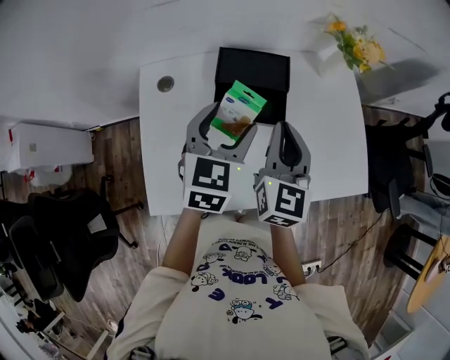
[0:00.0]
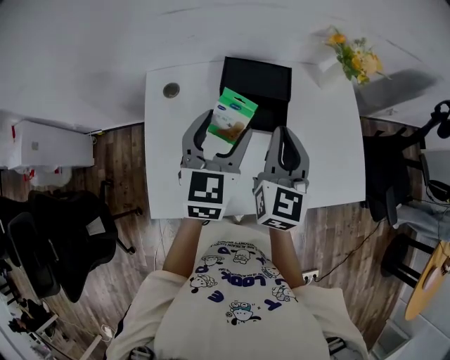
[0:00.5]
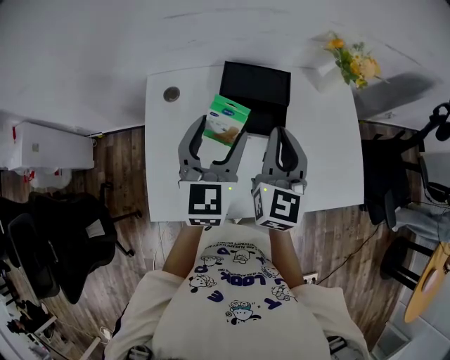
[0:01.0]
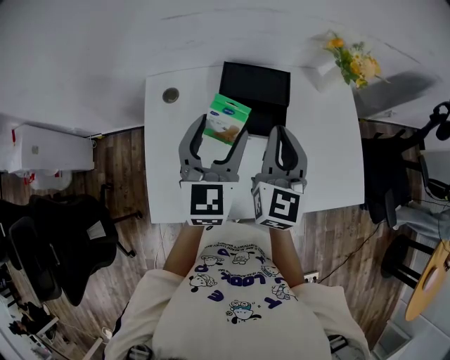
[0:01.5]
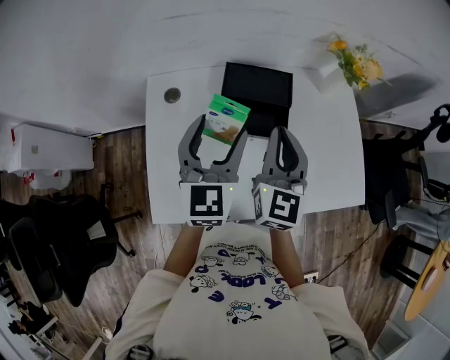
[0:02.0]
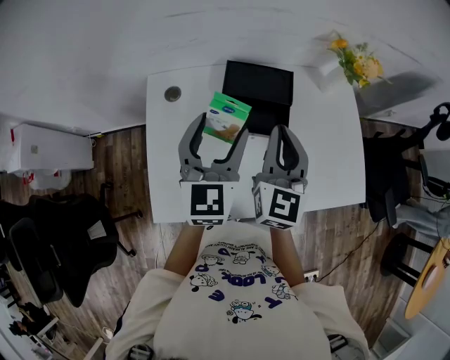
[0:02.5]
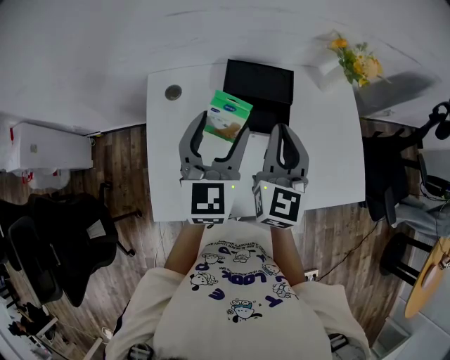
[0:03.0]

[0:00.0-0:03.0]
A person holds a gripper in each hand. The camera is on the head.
0:00.0 to 0:01.5: The left gripper changes place by about 5 cm.
0:01.5 to 0:03.0: The grippers stay close to where they were, moving slightly.

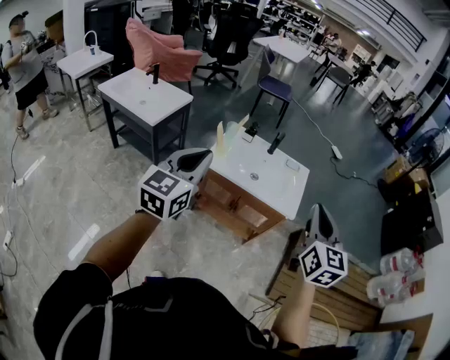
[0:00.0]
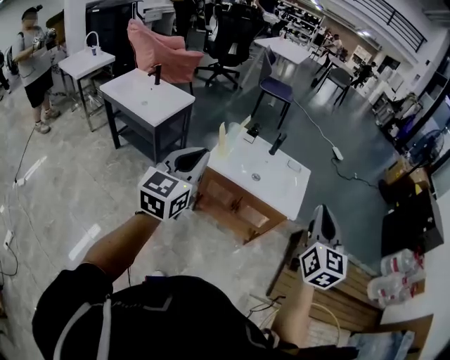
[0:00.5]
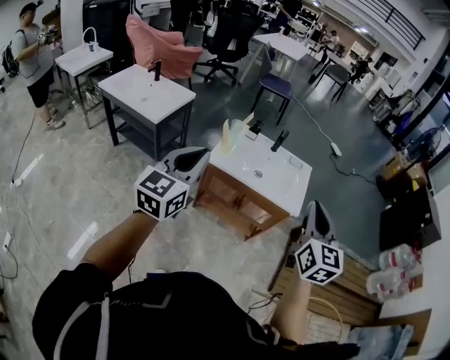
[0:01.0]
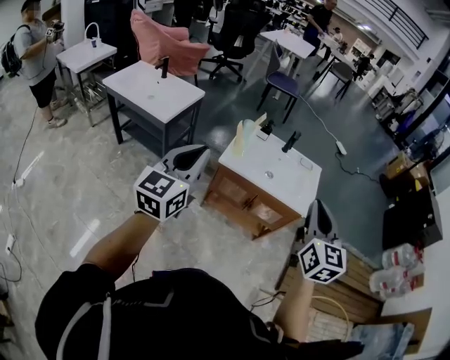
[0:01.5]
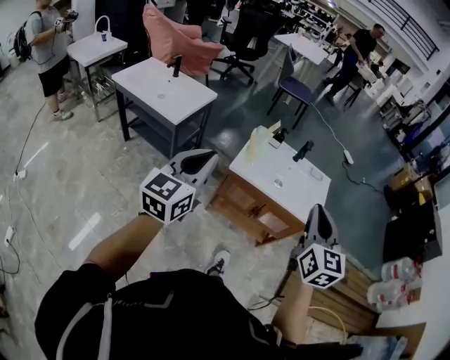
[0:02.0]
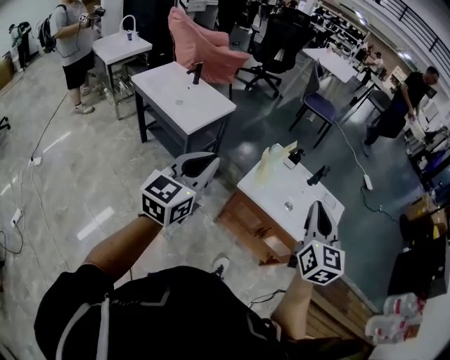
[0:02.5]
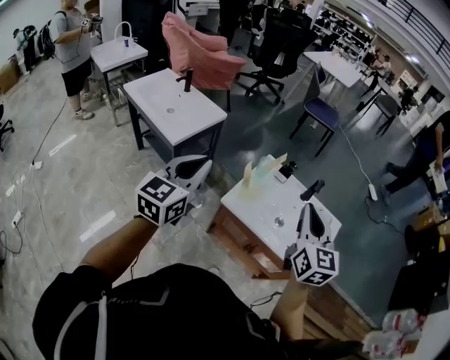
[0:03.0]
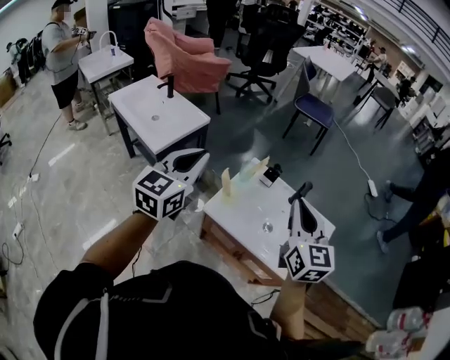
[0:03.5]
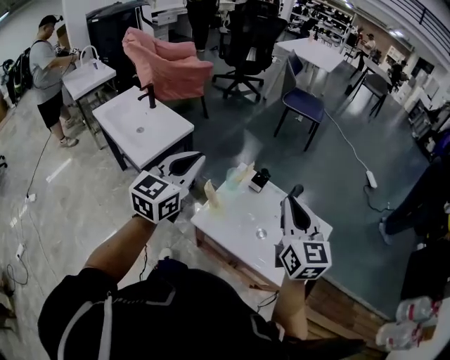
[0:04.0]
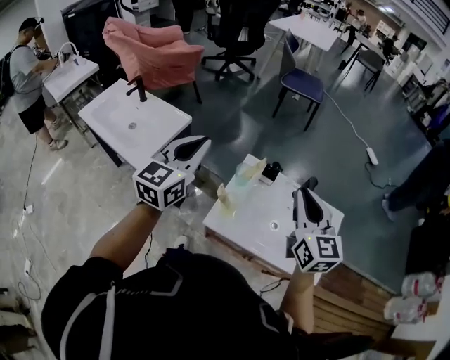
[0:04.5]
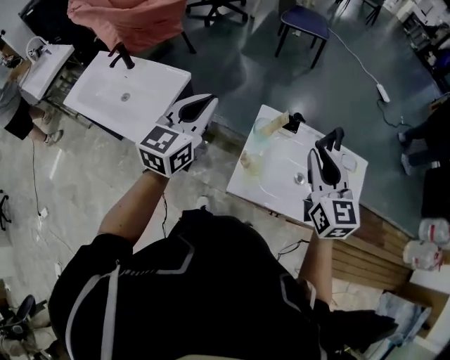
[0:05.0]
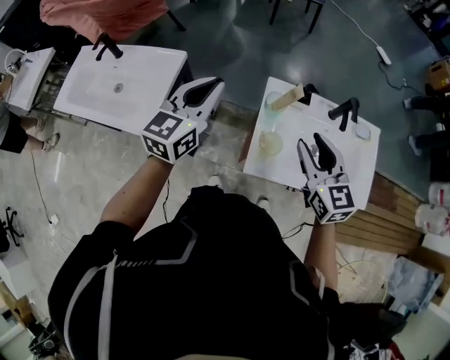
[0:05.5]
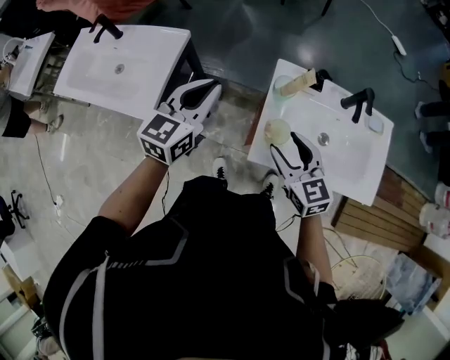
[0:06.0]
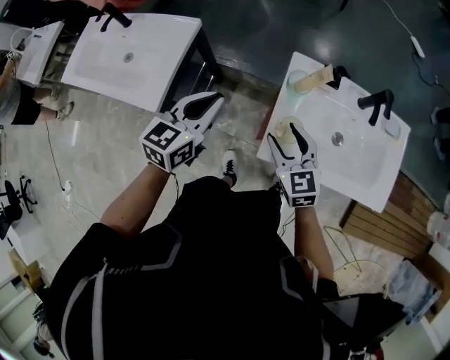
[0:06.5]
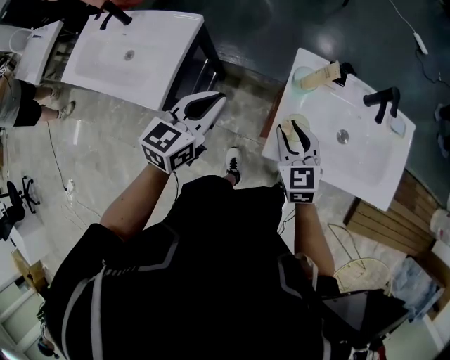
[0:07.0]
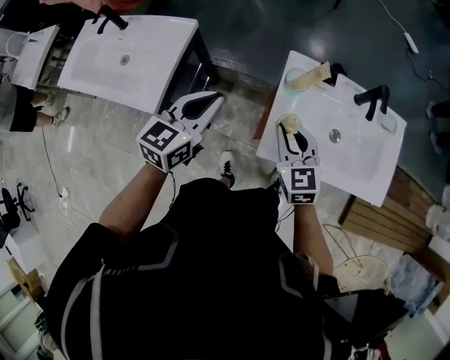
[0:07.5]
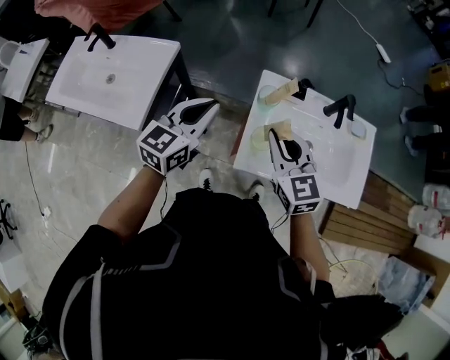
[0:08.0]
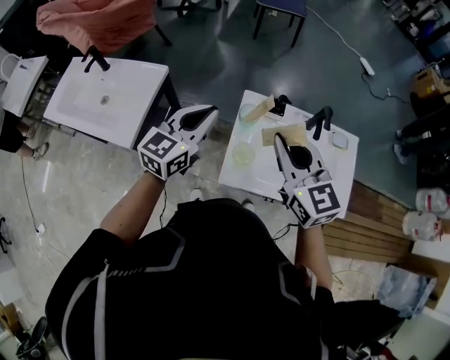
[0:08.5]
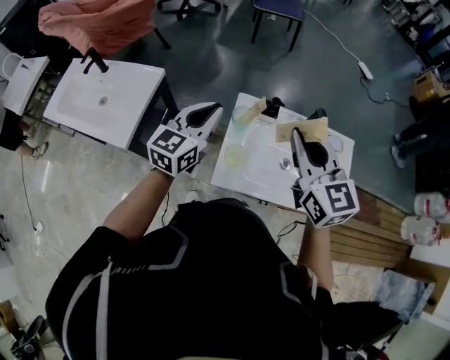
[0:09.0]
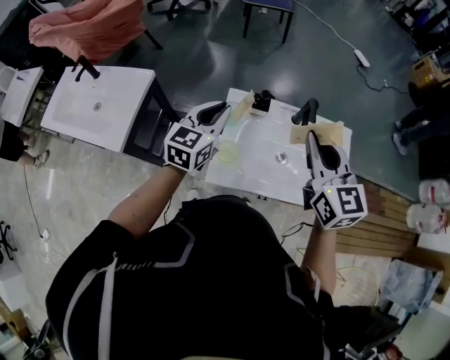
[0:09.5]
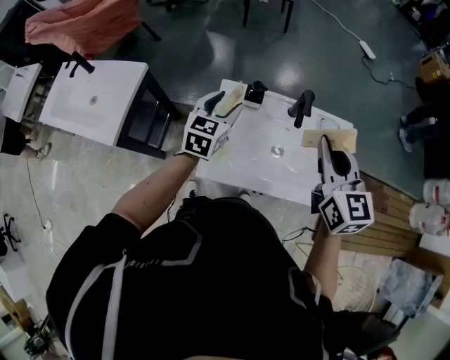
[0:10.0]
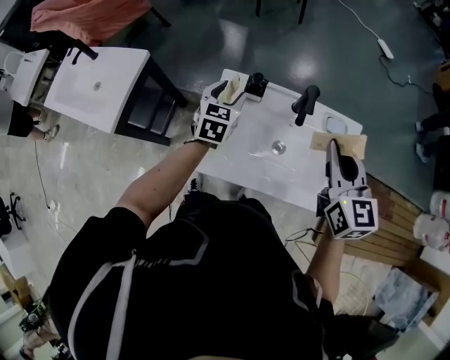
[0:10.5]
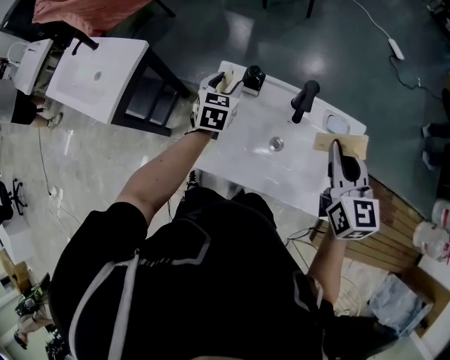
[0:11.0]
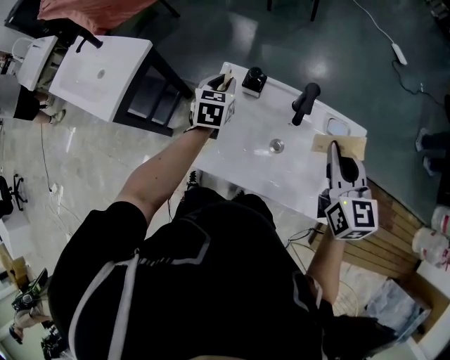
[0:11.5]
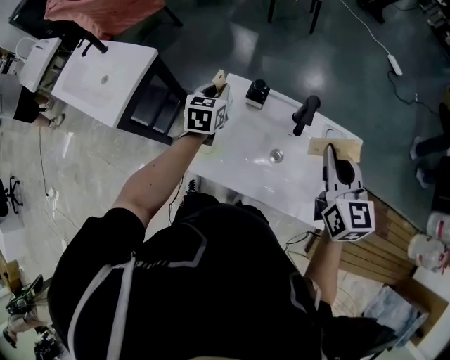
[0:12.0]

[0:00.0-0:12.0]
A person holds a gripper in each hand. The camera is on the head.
0:00.0 to 0:02.0: Both grippers travel together to the left, roughly 15 cm.
0:02.0 to 0:04.0: The left gripper goes approximately 35 cm forward and to the right. The right gripper is displaced forward by approximately 35 cm, and turns by roughly 20 degrees.
0:04.0 to 0:06.0: The left gripper goes approximately 25 cm downward, forward and to the left, and swivels approximately 20 degrees. Meanwhile the right gripper shifts some 30 cm downward and to the left, and opens its fingers.
0:06.0 to 0:08.0: The right gripper heads upward, covering roughly 5 cm, and closes its fingers.
0:08.0 to 0:10.0: The left gripper goes approximately 20 cm to the right and forward, and opens its fingers, while the right gripper moves to the right and upward, about 30 cm.
0:10.0 to 0:12.0: The left gripper heads forward and downward, covering about 10 cm, changes its angle by roughly 20 degrees, and closes, while the right gripper heads to the right, covering some 5 cm.

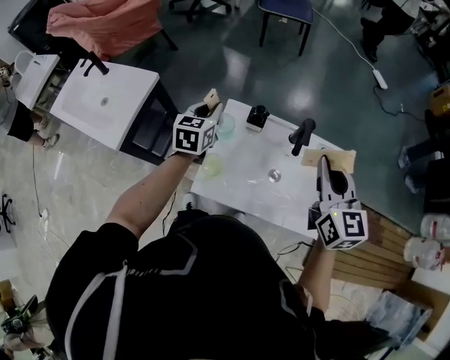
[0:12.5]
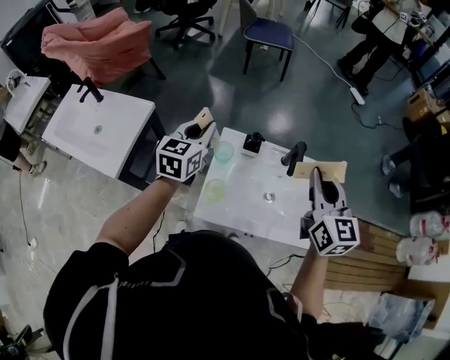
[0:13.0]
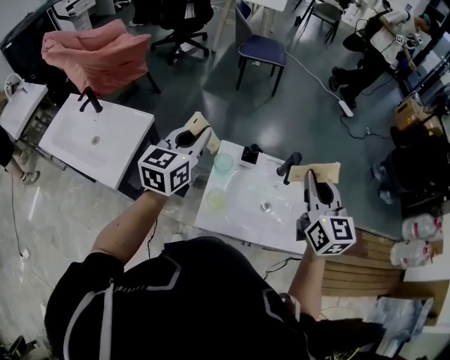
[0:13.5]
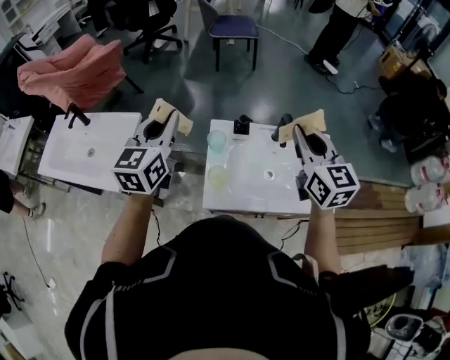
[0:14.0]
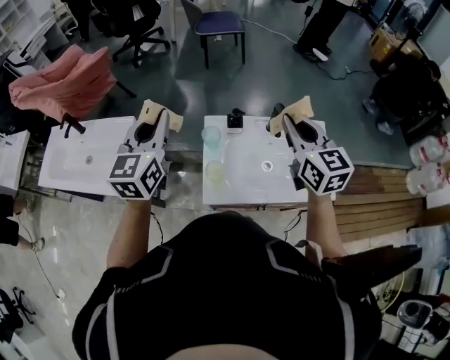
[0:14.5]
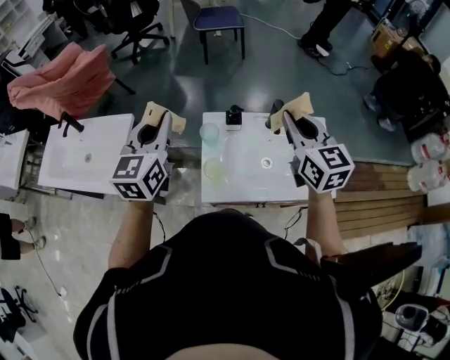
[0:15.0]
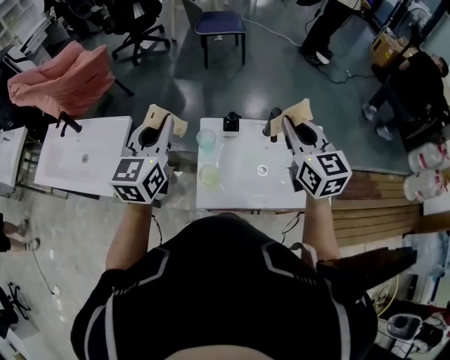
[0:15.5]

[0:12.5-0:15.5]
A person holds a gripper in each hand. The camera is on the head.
0:12.5 to 0:14.0: The left gripper is displaced upward and backward by roughly 20 cm, and turns by some 20 degrees, while the right gripper goes roughly 10 cm to the left and upward.
0:14.0 to 0:15.5: The grippers stay close to where they were, moving slightly.

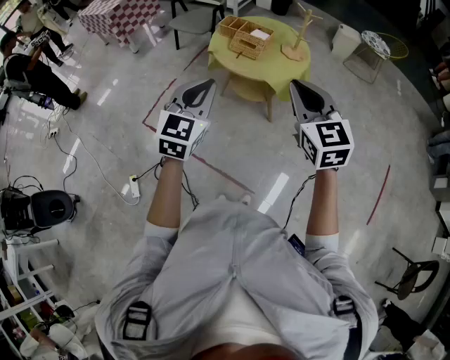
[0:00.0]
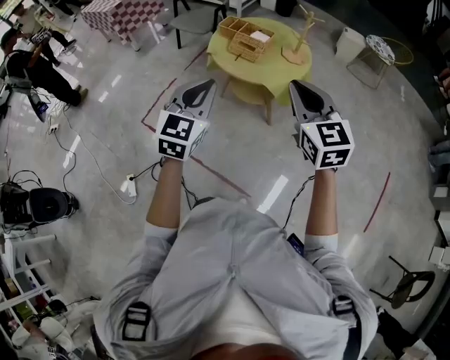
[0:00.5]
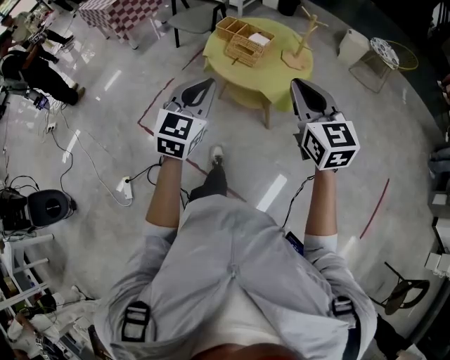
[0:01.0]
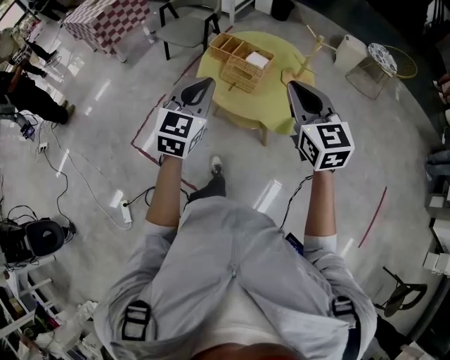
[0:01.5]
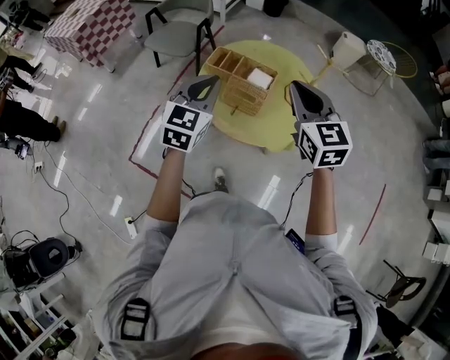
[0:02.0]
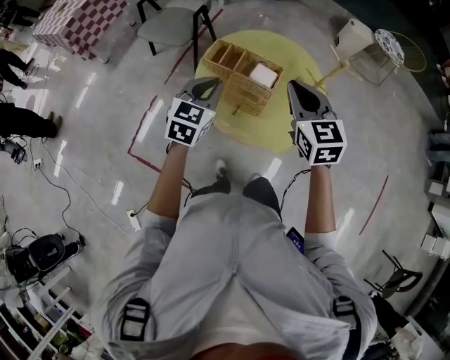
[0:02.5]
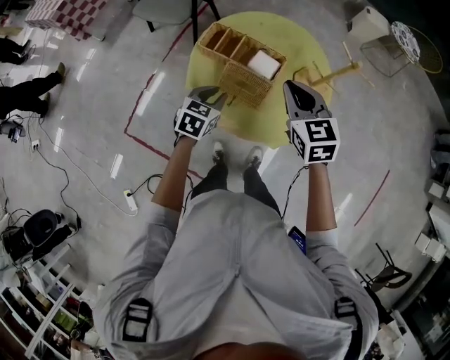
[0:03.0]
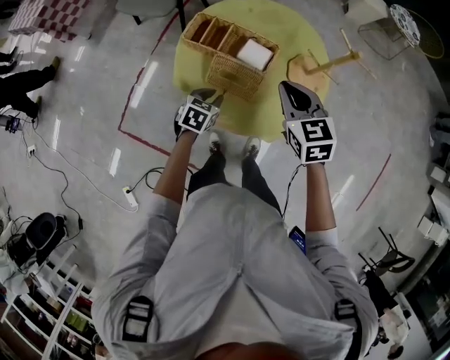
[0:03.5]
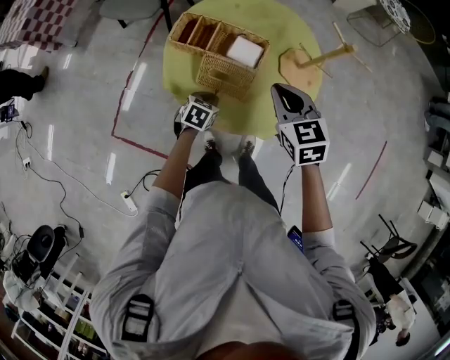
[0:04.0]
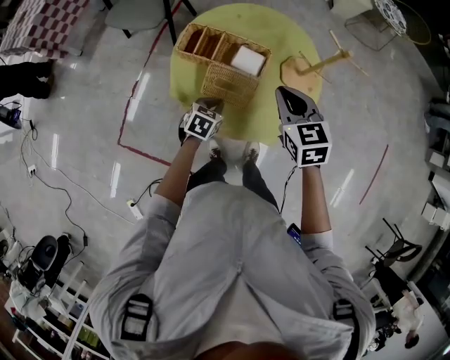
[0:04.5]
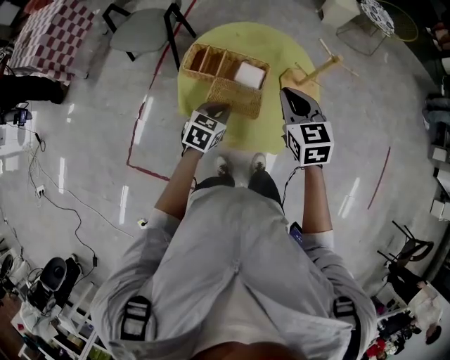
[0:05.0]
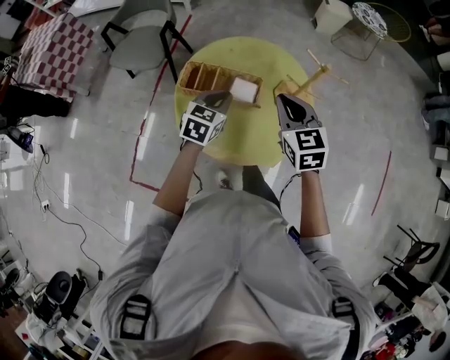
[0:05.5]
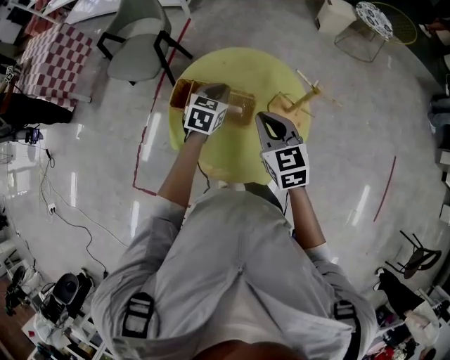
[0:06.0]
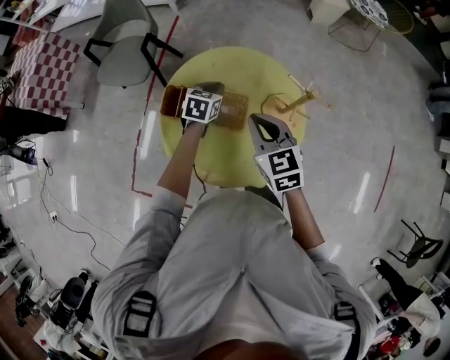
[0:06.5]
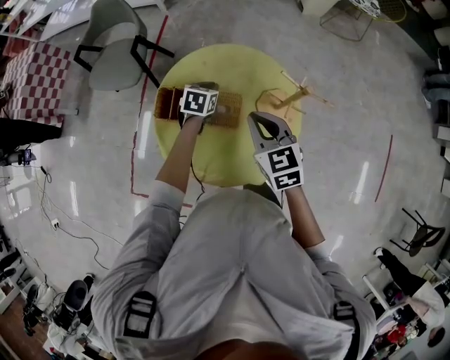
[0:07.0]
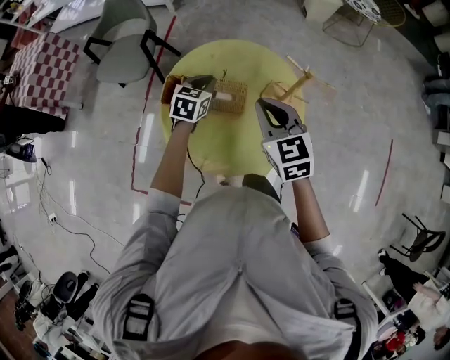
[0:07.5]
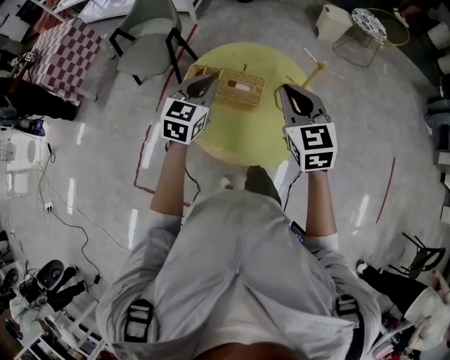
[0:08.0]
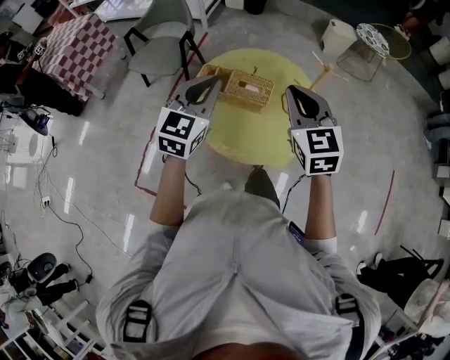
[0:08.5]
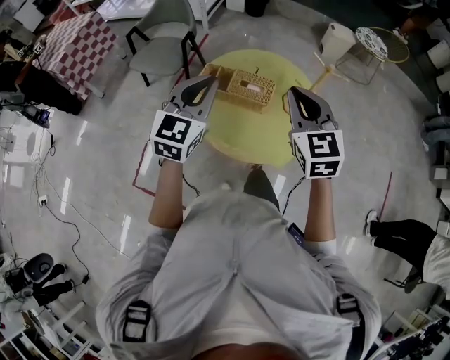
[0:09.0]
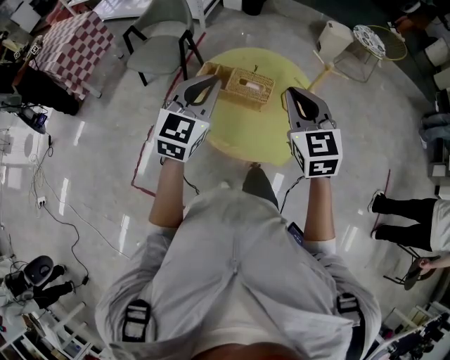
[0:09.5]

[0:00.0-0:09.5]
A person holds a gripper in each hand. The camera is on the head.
0:00.0 to 0:02.0: The pair of grippers is taken forward, roughly 40 cm.
0:02.0 to 0:04.0: The left gripper shifts roughly 40 cm downward, and points its fingers approximately 40 degrees further downward. The right gripper heads downward and forward, covering roughly 25 cm, and swivels some 20 degrees.
0:04.0 to 0:05.5: The left gripper travels upward and forward by about 25 cm, and turns by approximately 30 degrees; the right gripper moves upward, roughly 10 cm.
0:05.5 to 0:07.5: The left gripper travels forward by roughly 10 cm.
0:07.5 to 0:09.5: The left gripper is displaced upward and backward by roughly 35 cm, and changes its angle by about 30 degrees. The right gripper goes approximately 15 cm backward and upward.
